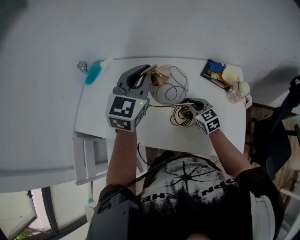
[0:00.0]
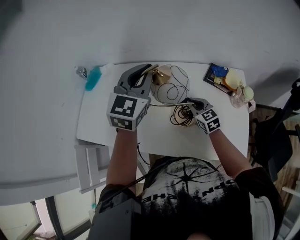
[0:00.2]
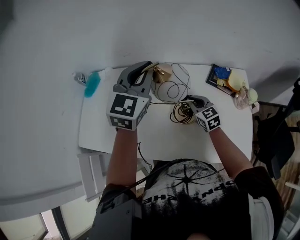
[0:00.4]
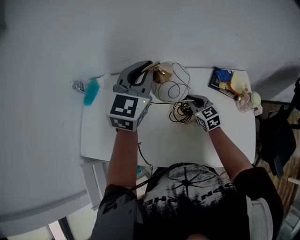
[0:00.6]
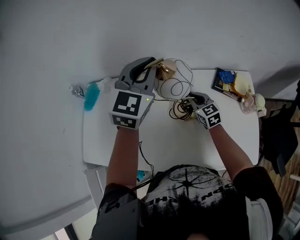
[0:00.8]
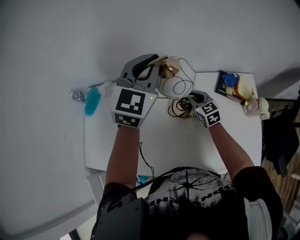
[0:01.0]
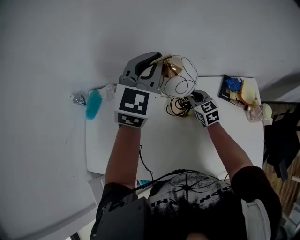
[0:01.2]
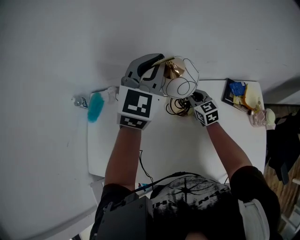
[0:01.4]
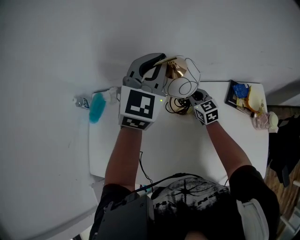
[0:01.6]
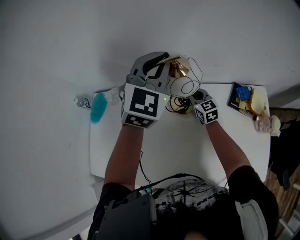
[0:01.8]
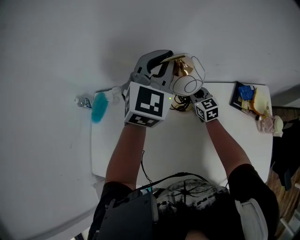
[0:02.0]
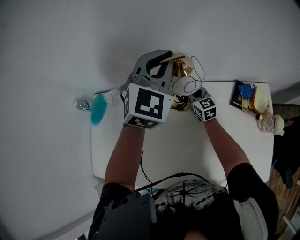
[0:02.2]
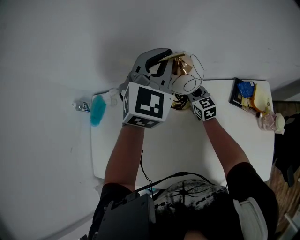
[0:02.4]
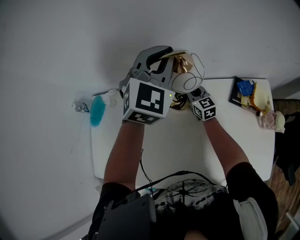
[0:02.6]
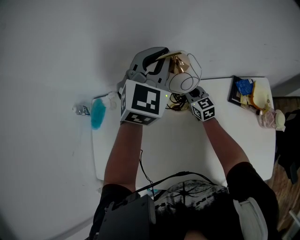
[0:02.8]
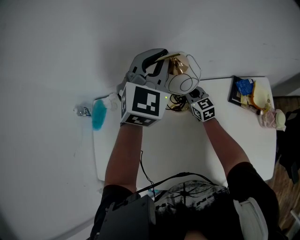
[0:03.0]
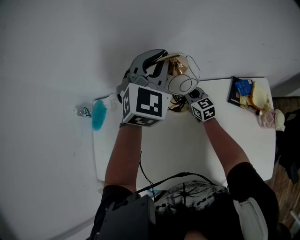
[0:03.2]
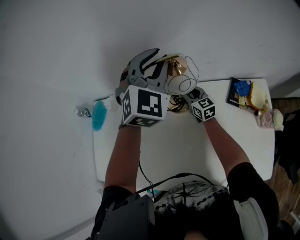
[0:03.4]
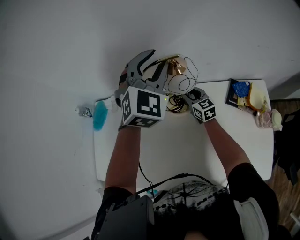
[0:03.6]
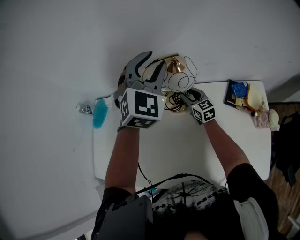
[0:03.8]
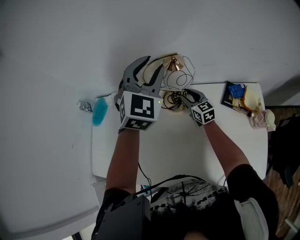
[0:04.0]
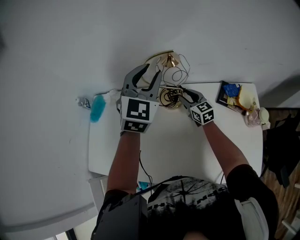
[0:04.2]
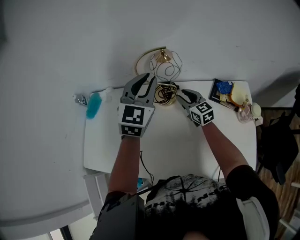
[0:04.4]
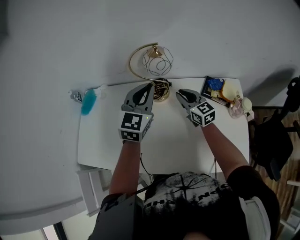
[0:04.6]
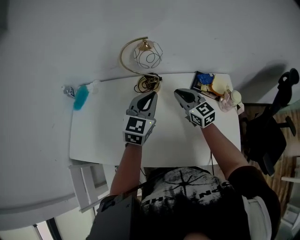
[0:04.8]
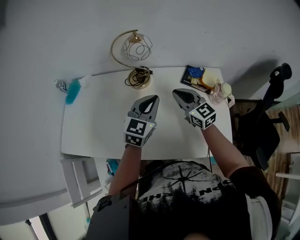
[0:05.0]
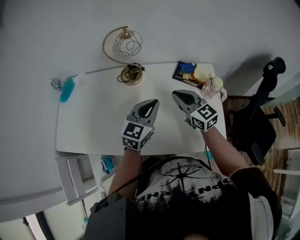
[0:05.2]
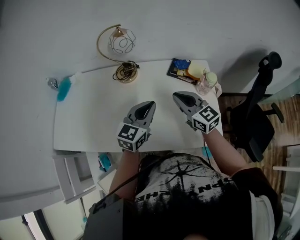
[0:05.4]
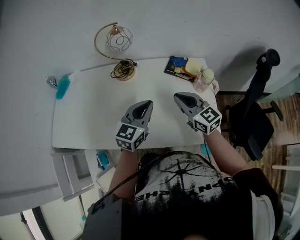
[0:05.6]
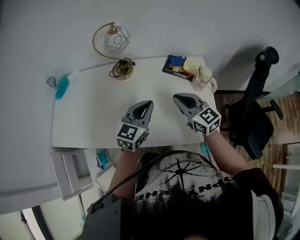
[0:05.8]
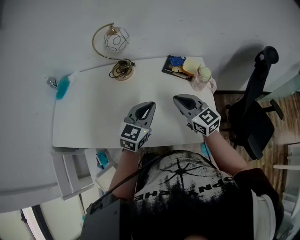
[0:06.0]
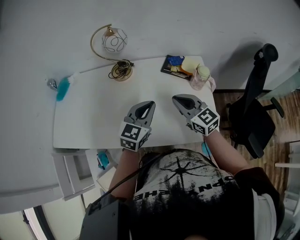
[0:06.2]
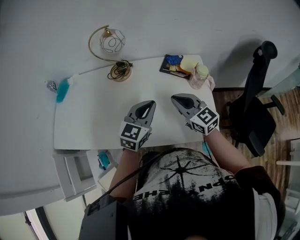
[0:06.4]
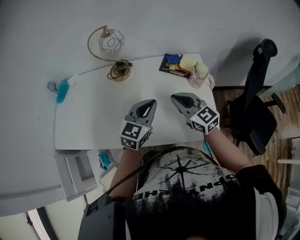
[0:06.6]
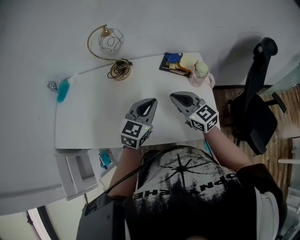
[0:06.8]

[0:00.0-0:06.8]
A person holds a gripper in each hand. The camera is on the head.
0:00.0 to 0:01.4: The grippers both shift forward by roughly 25 cm.
0:01.4 to 0:02.8: The two grippers go roughly 5 cm forward.
0:02.8 to 0:04.0: The left gripper goes approximately 5 cm backward, and opens; the right gripper changes place by about 5 cm, and opens its fingers.
0:04.0 to 0:05.4: The left gripper moves backward and downward, about 35 cm, rotates some 40 degrees, and closes; the right gripper goes approximately 40 cm backward, upward and to the right, and closes.
0:05.4 to 0:06.8: The right gripper changes place by approximately 5 cm; the left gripper shifts some 5 cm to the right.

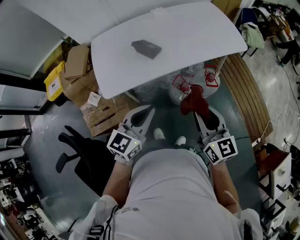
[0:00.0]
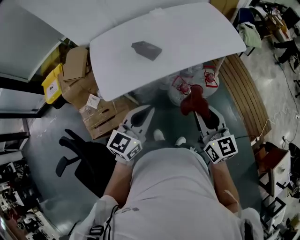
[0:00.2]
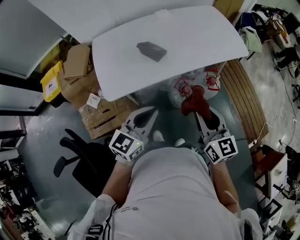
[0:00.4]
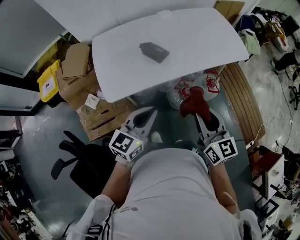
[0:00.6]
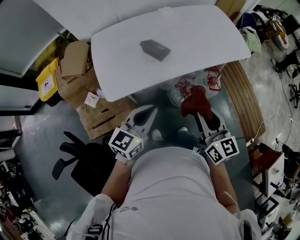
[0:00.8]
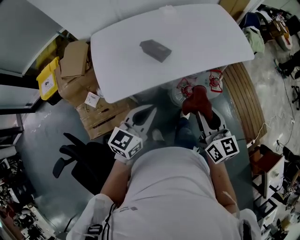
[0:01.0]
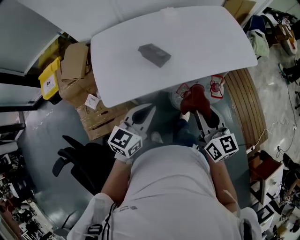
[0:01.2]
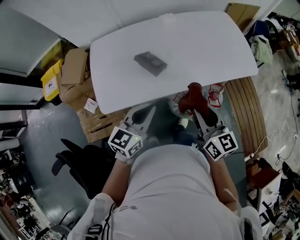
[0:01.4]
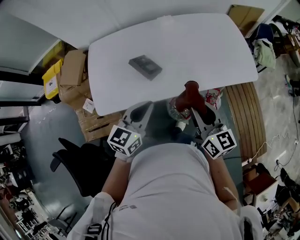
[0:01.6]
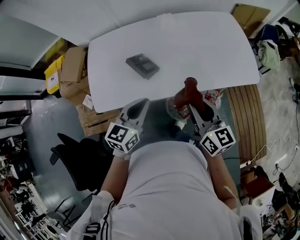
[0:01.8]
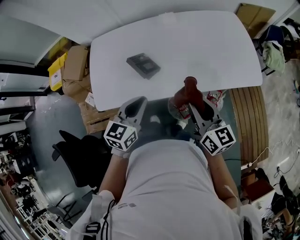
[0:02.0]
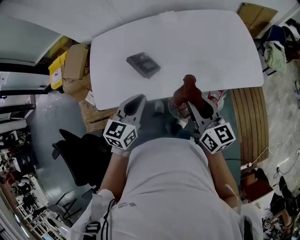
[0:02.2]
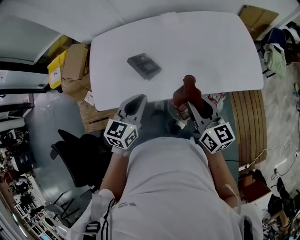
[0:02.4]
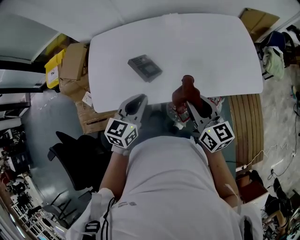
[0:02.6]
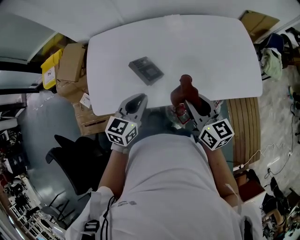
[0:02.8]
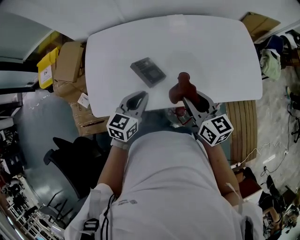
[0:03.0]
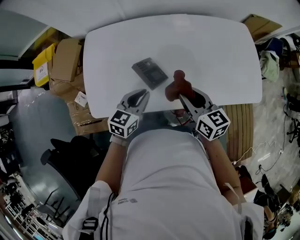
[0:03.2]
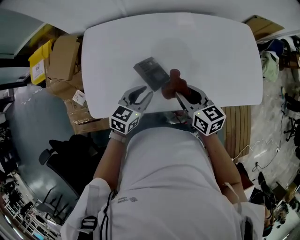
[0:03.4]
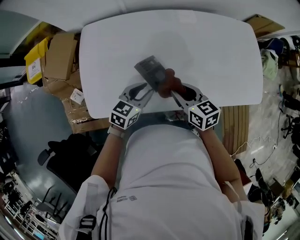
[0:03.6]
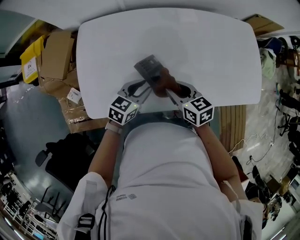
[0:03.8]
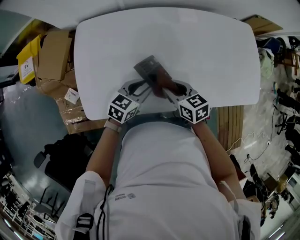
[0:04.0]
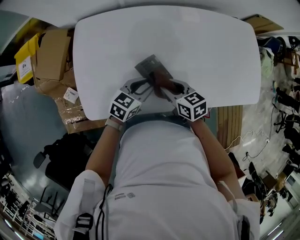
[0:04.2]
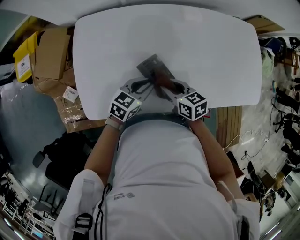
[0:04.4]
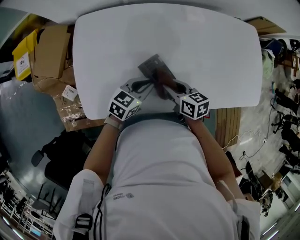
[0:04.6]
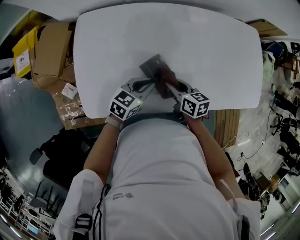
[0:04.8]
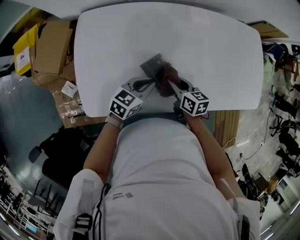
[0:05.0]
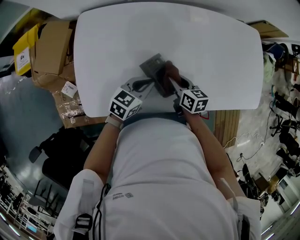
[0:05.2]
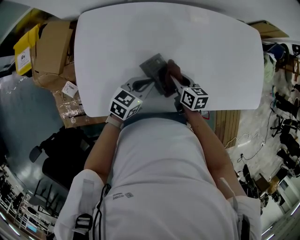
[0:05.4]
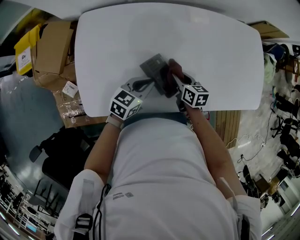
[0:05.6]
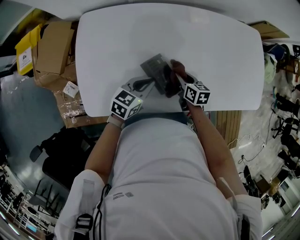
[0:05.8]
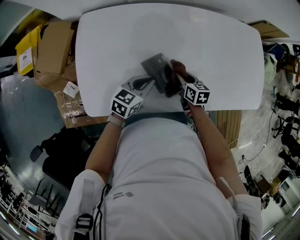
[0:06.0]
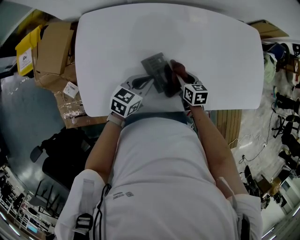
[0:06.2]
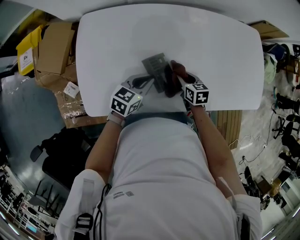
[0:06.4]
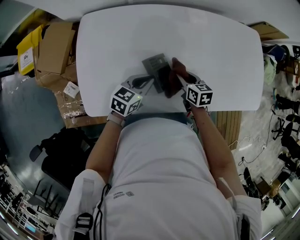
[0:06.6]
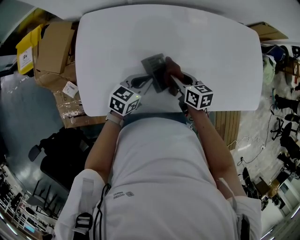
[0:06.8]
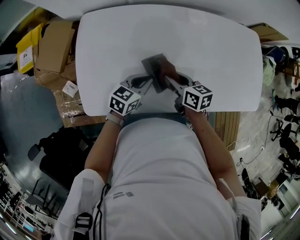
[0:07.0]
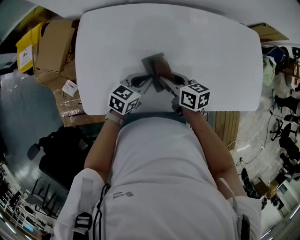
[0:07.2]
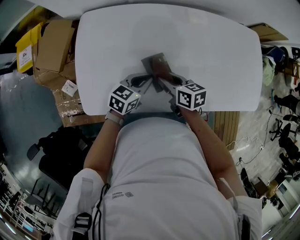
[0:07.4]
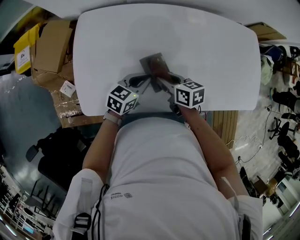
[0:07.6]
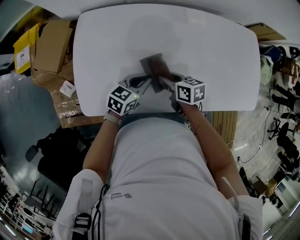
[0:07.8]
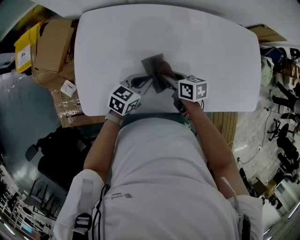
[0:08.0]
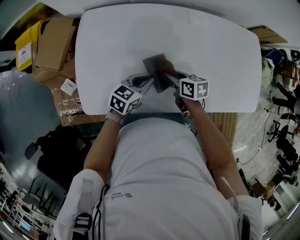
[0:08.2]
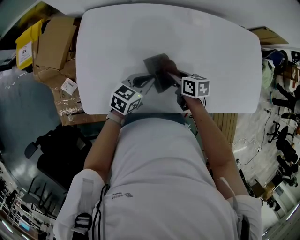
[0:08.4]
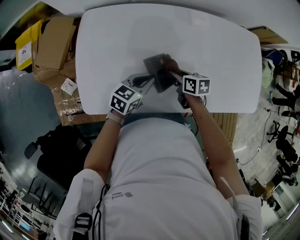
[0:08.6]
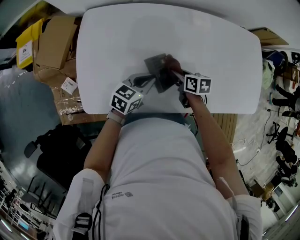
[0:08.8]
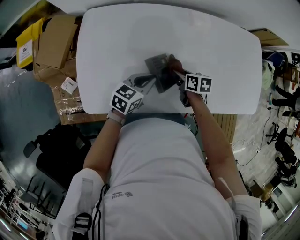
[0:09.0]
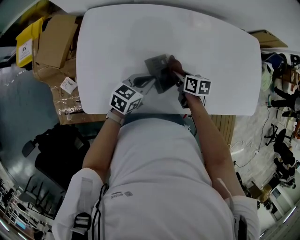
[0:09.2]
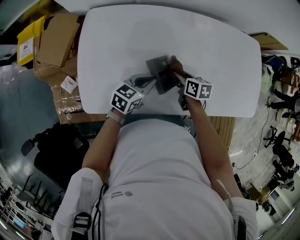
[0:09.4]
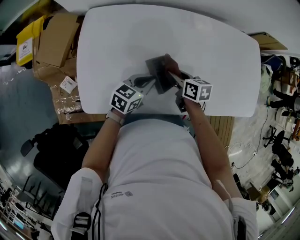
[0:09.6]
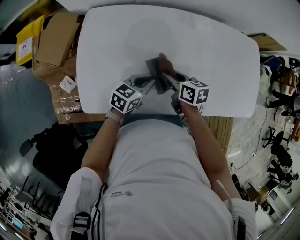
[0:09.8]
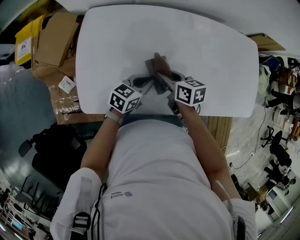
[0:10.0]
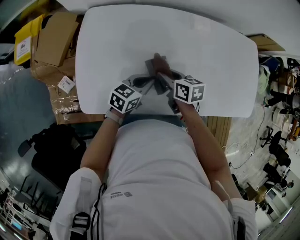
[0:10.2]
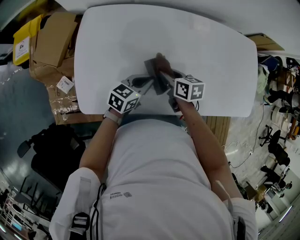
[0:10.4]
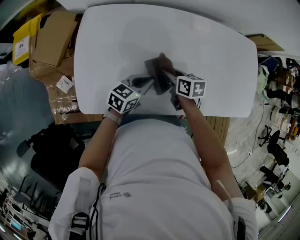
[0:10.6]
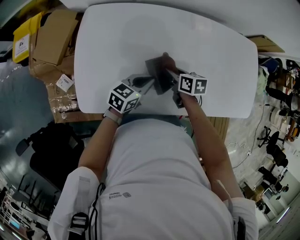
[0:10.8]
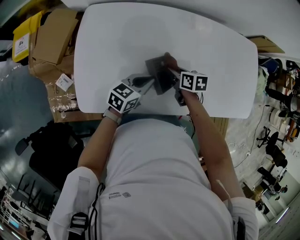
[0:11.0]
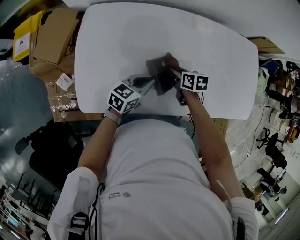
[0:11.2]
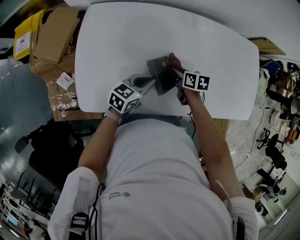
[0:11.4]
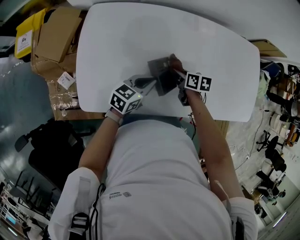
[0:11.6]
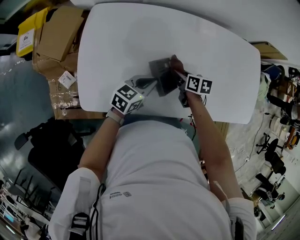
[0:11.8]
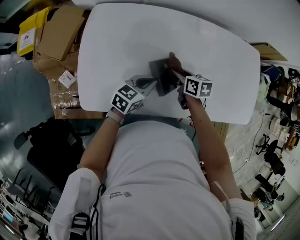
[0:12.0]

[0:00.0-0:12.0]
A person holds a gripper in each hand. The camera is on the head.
0:00.0 to 0:01.6: Both grippers move forward, about 20 cm.
0:01.6 to 0:03.0: The right gripper goes some 15 cm forward, while the left gripper moves forward and downward, some 15 cm.
0:03.0 to 0:04.4: The right gripper shifts some 20 cm downward, to the left and forward, and swivels approximately 30 degrees; the left gripper travels downward and forward by some 15 cm.
0:04.4 to 0:06.0: The right gripper heads downward, to the right and forward, covering about 15 cm.
0:06.0 to 0:07.6: The right gripper heads to the left and upward, covering approximately 10 cm.
0:07.6 to 0:09.0: The right gripper heads to the right and downward, covering some 10 cm.
0:09.0 to 0:10.4: The right gripper moves to the left and upward, about 10 cm.

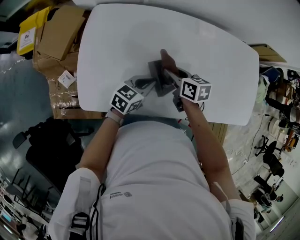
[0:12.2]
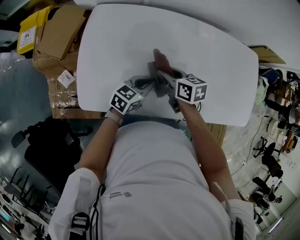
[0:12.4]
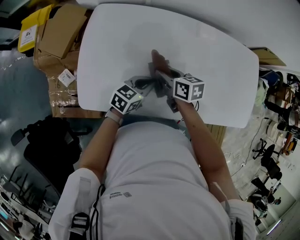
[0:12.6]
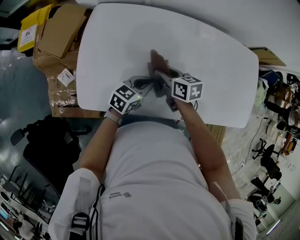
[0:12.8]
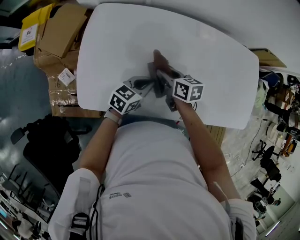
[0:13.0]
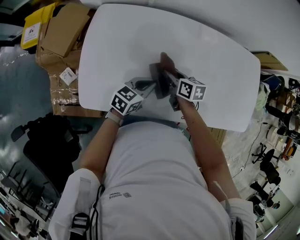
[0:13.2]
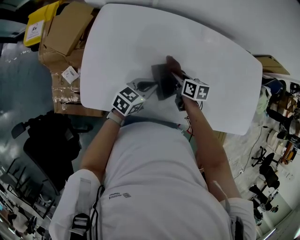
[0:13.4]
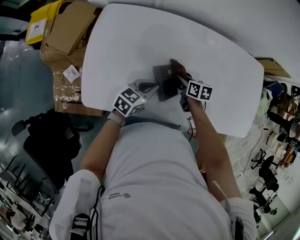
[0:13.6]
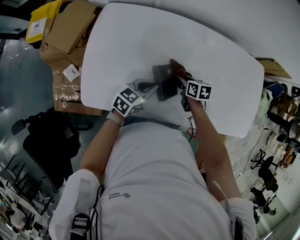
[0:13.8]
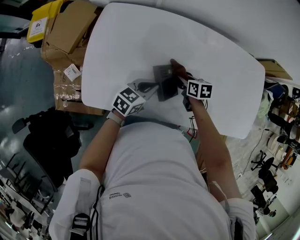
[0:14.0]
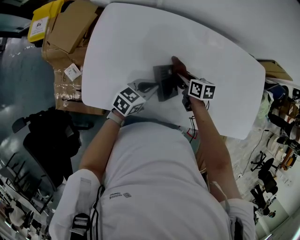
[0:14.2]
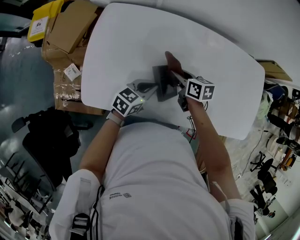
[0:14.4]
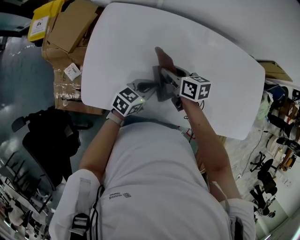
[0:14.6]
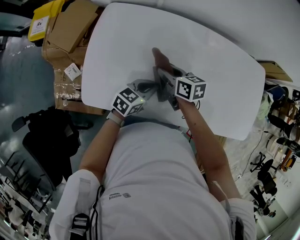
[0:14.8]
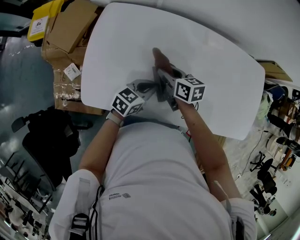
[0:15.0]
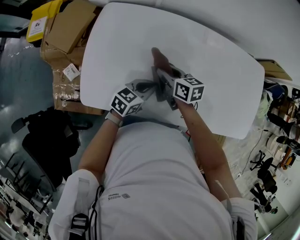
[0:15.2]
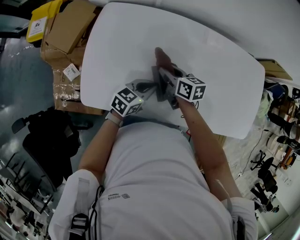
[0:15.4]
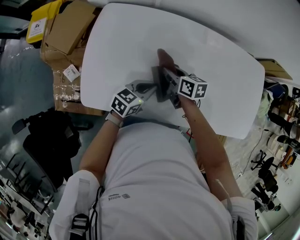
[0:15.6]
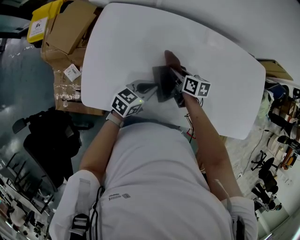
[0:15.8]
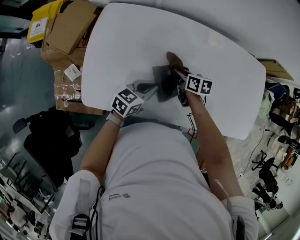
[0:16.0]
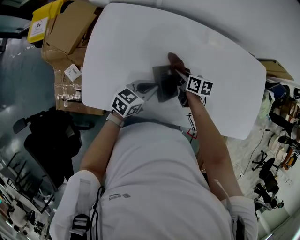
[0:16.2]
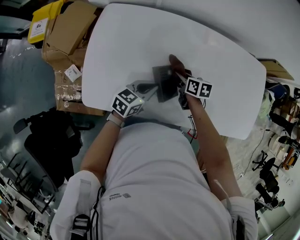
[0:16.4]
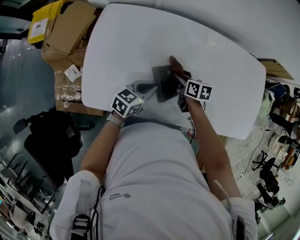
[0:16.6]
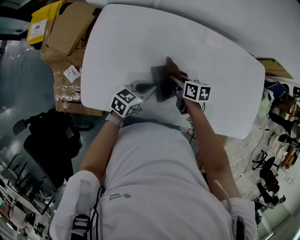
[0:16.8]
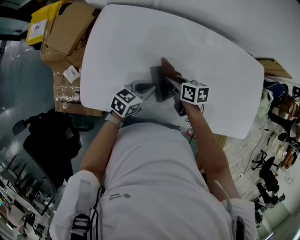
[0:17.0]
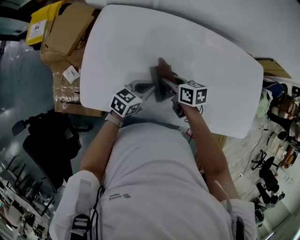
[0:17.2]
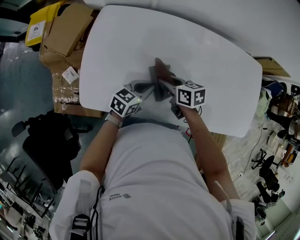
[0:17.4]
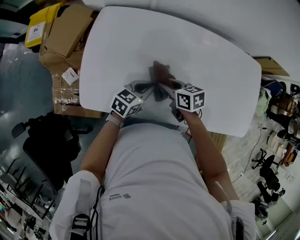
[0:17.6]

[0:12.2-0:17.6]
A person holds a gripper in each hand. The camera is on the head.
0:12.2 to 0:13.6: The right gripper shifts roughly 10 cm downward and to the right.
0:13.6 to 0:15.0: The right gripper is displaced to the left and upward by roughly 15 cm.
0:15.0 to 0:16.2: The right gripper is displaced to the right and downward by about 10 cm.
0:16.2 to 0:17.6: The right gripper heads upward, backward and to the left, covering approximately 10 cm.
